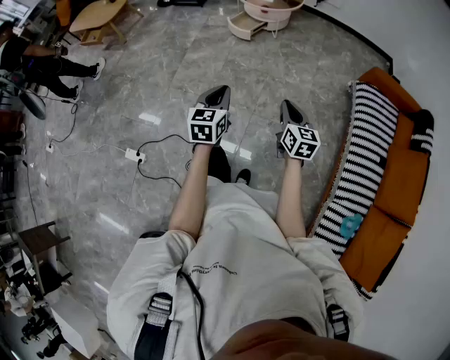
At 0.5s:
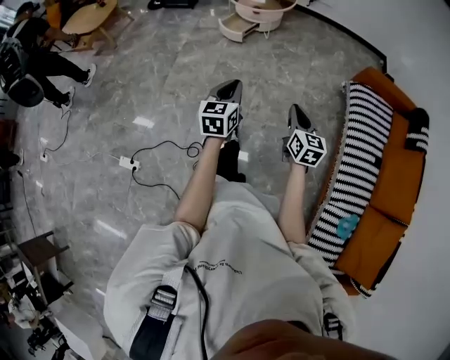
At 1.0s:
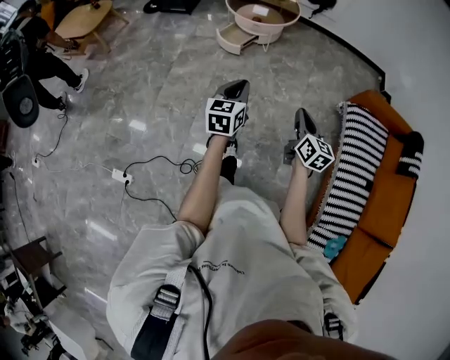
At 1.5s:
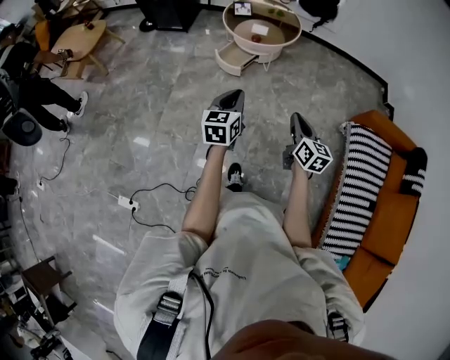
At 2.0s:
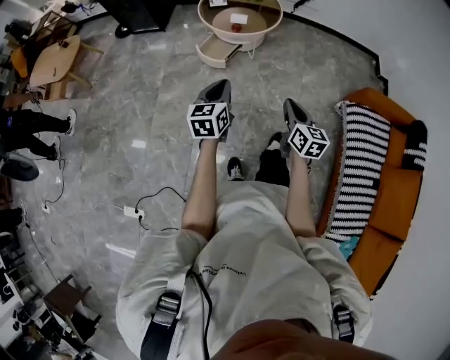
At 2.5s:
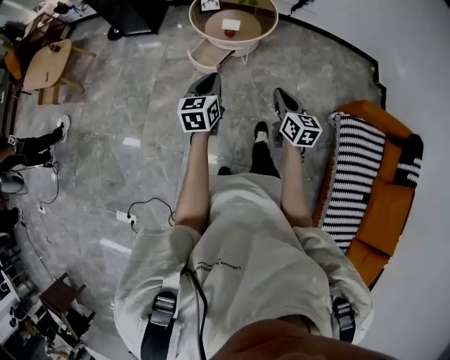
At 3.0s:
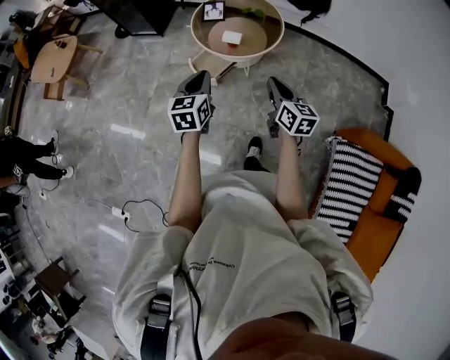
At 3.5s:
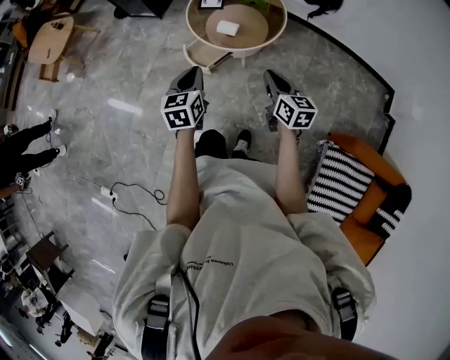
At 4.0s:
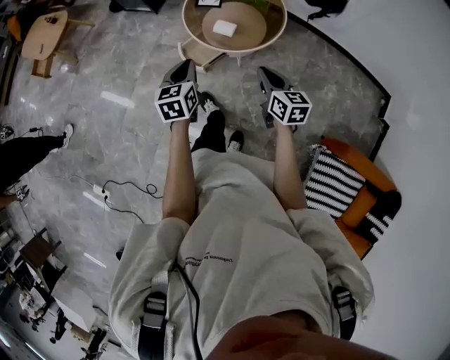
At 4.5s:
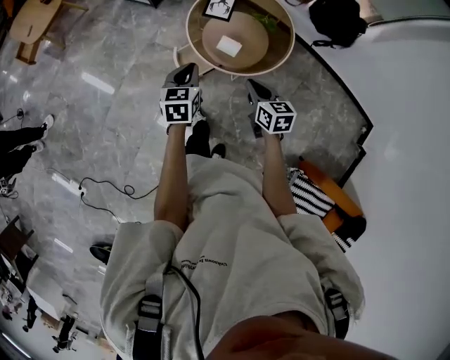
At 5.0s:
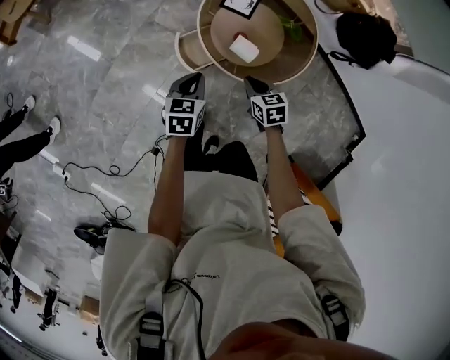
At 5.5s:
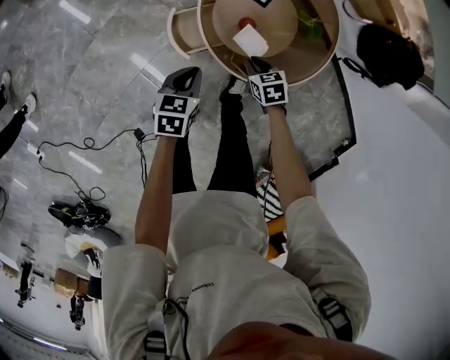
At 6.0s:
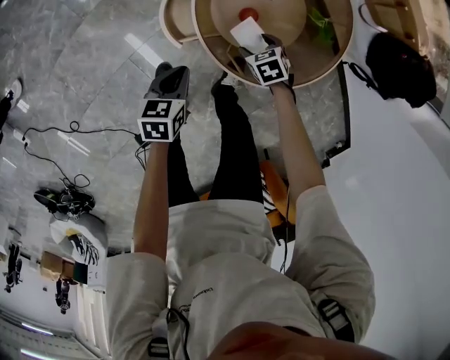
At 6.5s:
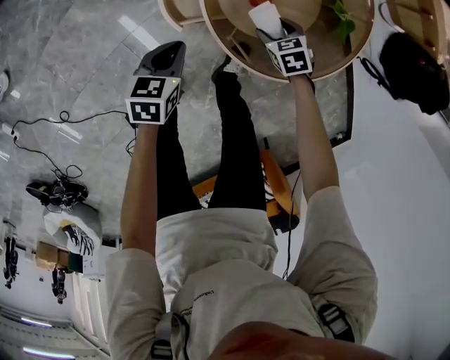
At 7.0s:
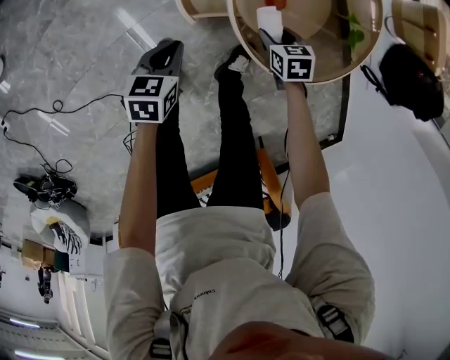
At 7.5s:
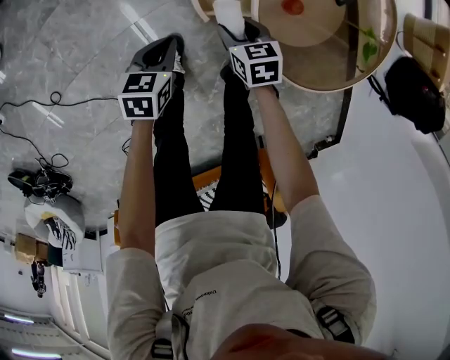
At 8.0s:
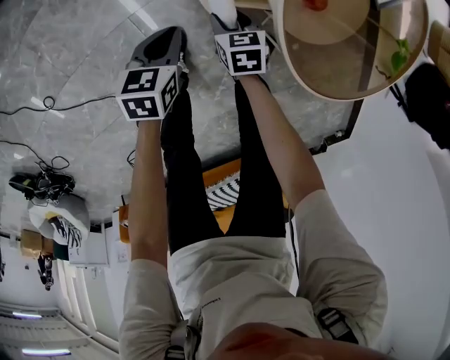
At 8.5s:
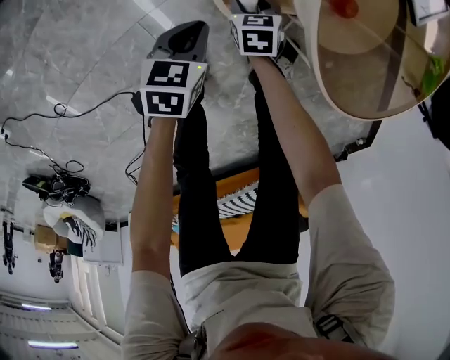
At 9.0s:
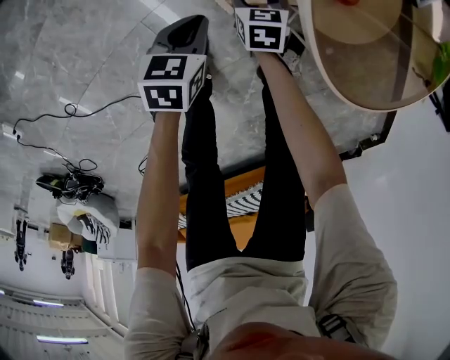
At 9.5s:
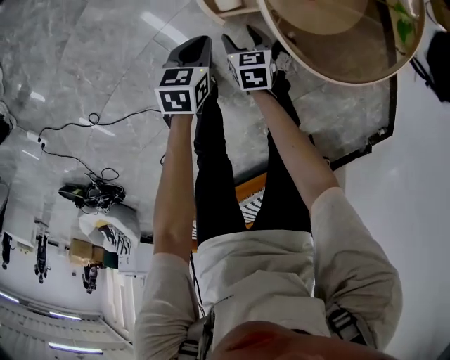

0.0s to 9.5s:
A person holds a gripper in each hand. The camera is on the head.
0.0s to 2.0s: The two grippers travel together, forward, roughly 50 cm.
2.0s to 4.0s: The pair of grippers is taken some 50 cm. The right gripper turns by some 30 degrees; the left gripper rotates approximately 20 degrees.
4.0s to 5.5s: The left gripper heads downward and forward, covering approximately 50 cm, and rotates some 20 degrees; the right gripper heads forward and downward, covering about 60 cm, and tilts its fingers approximately 40 degrees downward.
5.5s to 7.5s: The right gripper heads to the left and downward, covering approximately 25 cm, and opens up. Meanwhile the left gripper travels downward and to the left by approximately 30 cm, and rotates roughly 20 degrees.
7.5s to 9.5s: The left gripper moves to the right and downward, approximately 10 cm, while the right gripper moves downward, some 10 cm.

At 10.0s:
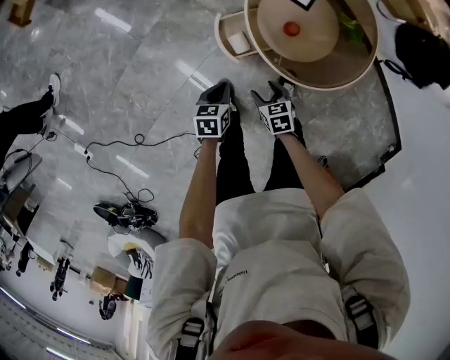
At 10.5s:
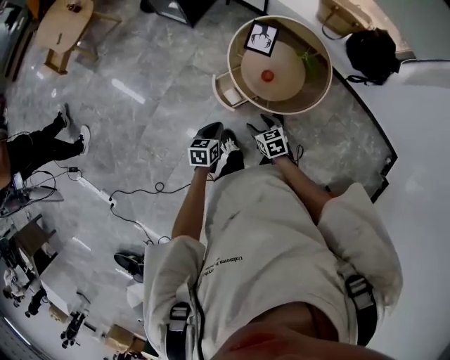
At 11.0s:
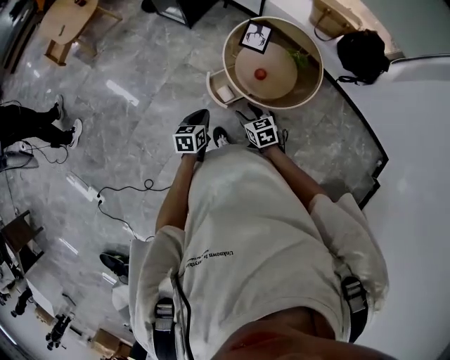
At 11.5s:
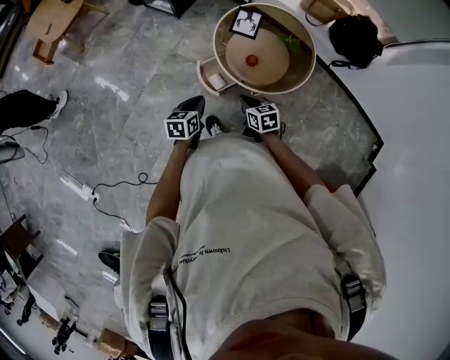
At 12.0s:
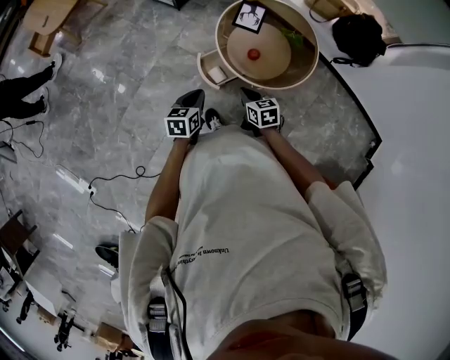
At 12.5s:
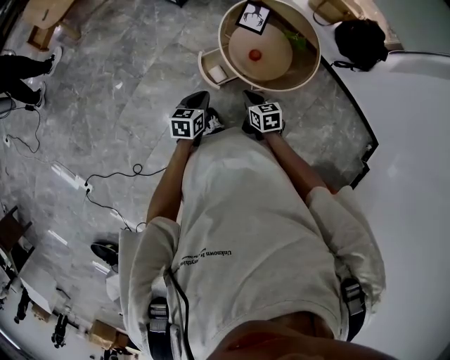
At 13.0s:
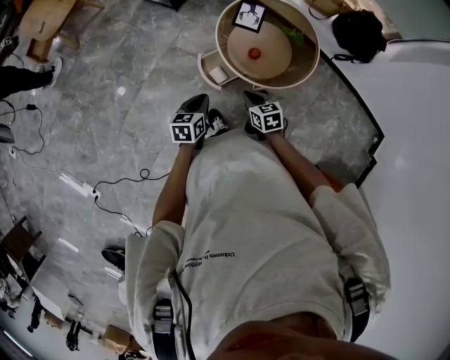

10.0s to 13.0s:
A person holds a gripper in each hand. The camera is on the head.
10.0s to 11.5s: The grippers both shift upward by approximately 25 cm. The right gripper rotates approximately 20 degrees, and closes its fingers.
11.5s to 13.0s: There are only small adjustments of the grippers.

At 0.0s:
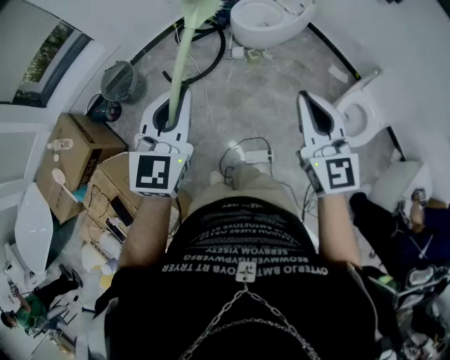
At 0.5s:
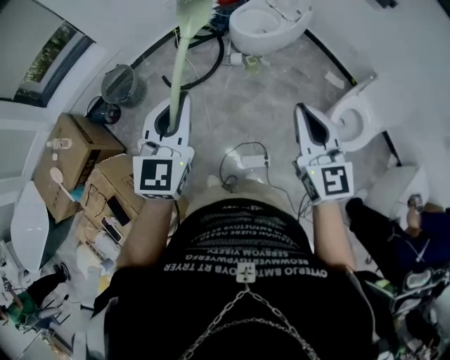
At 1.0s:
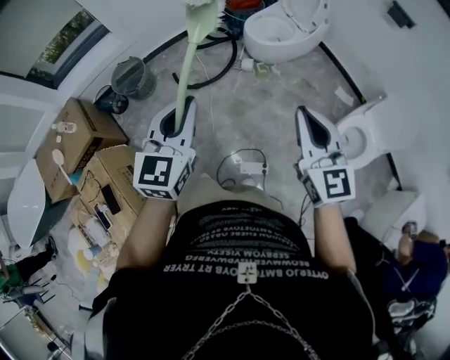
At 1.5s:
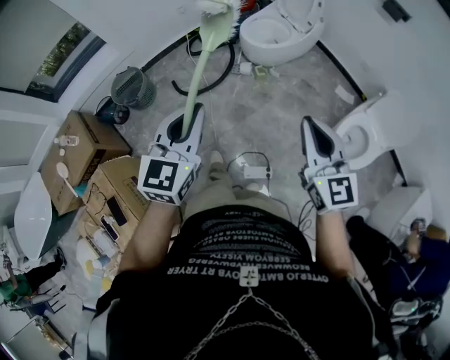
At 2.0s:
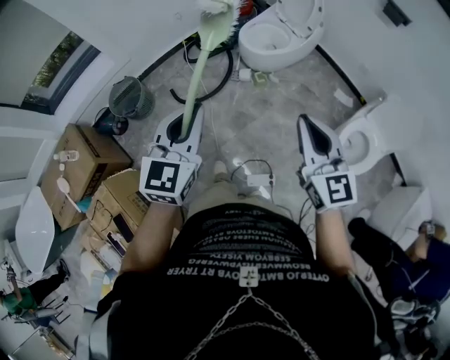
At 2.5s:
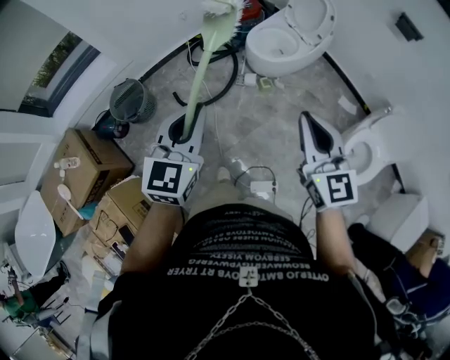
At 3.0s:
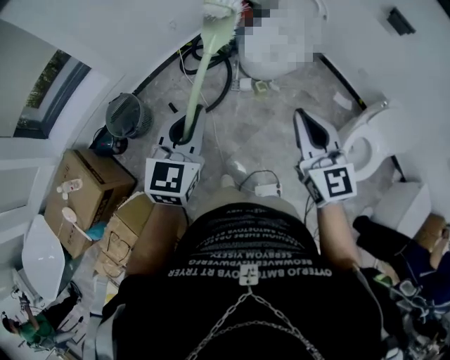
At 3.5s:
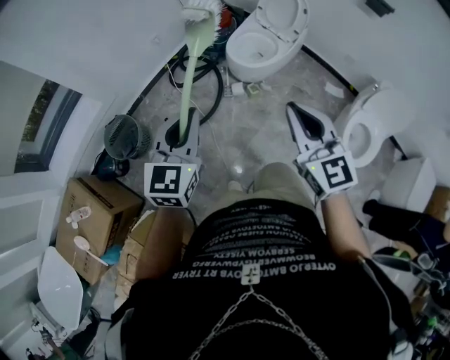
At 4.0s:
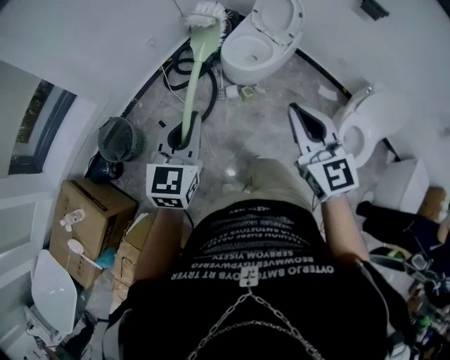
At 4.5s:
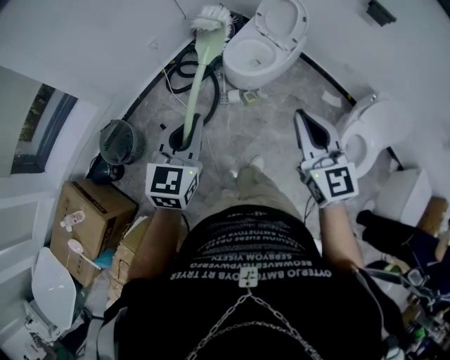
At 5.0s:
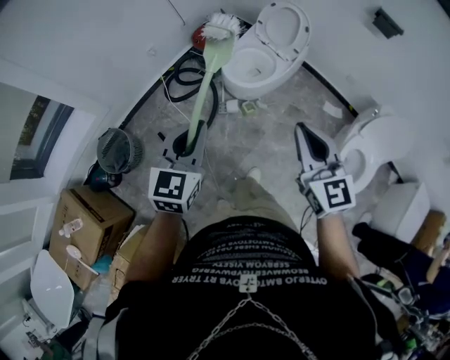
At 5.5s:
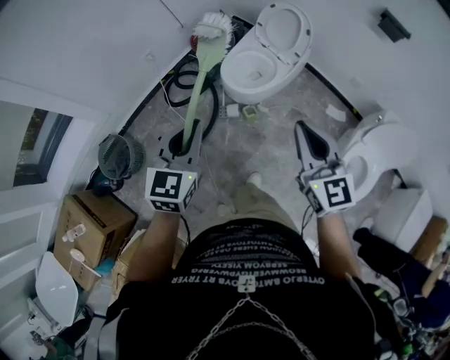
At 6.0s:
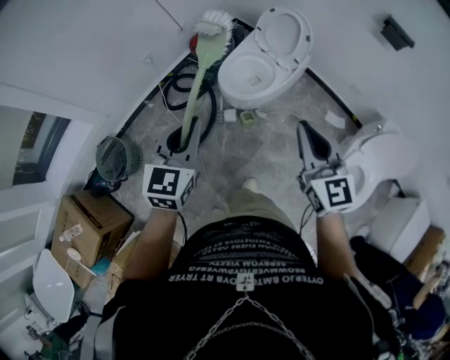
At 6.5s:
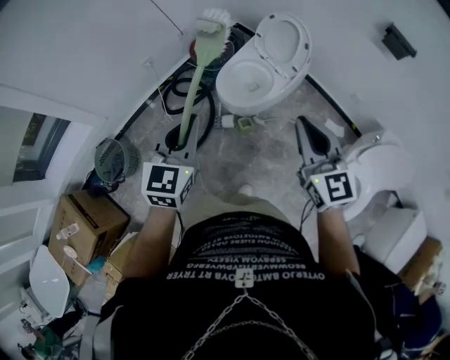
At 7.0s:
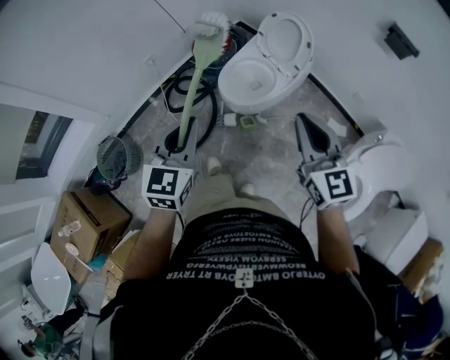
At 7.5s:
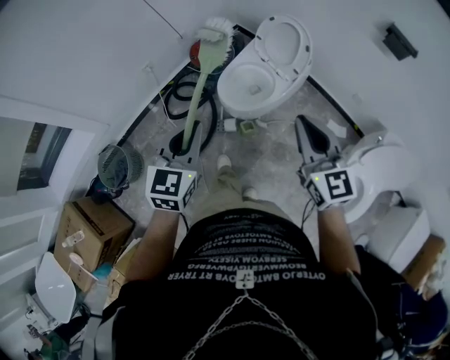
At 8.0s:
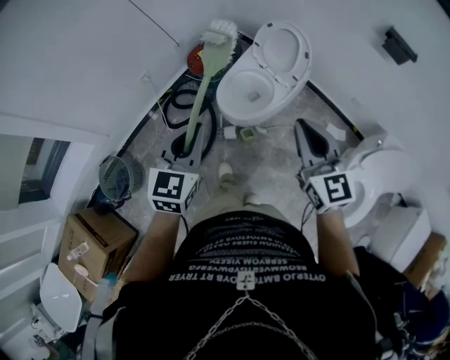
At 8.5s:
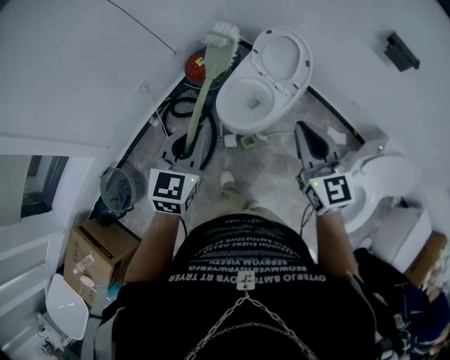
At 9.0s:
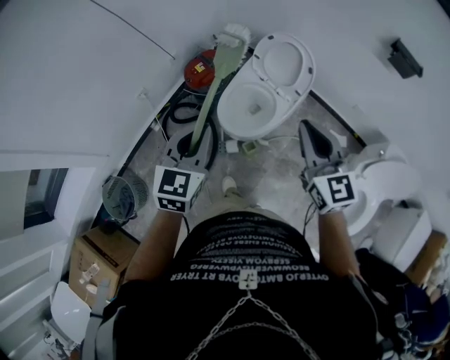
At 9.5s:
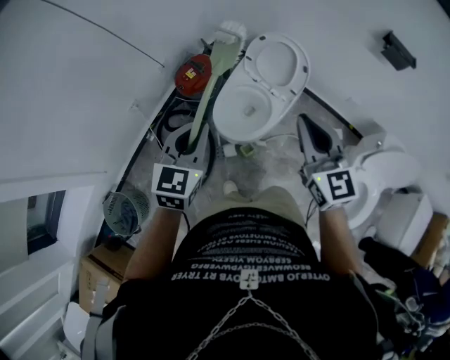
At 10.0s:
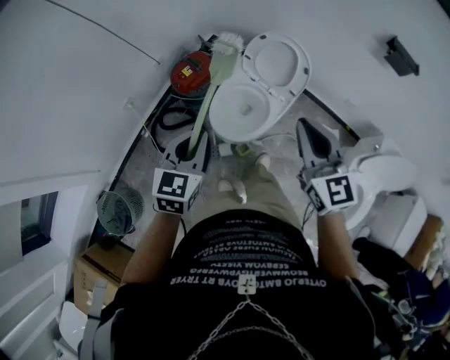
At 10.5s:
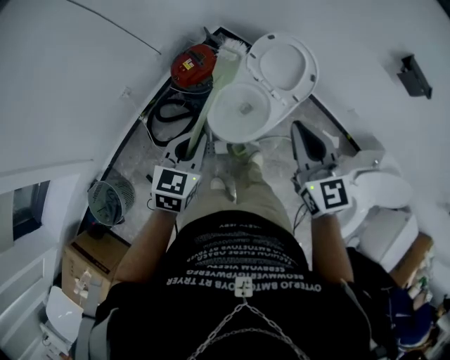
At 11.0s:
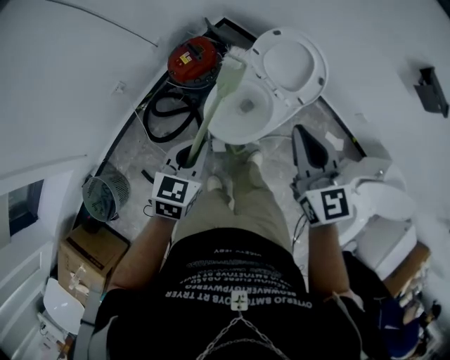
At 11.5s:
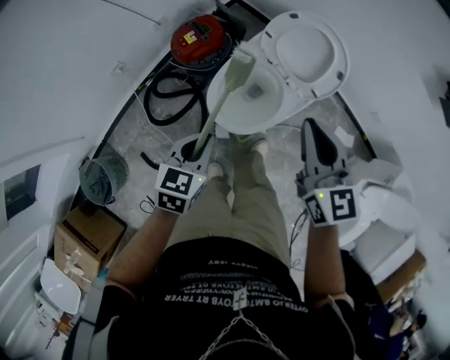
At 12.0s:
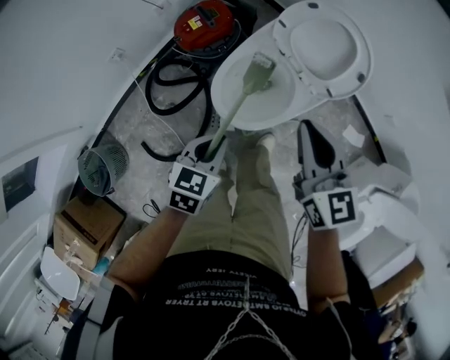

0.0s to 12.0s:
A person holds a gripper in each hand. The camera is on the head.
0.0s to 2.0s: Both grippers travel together forward, some 5 cm.
2.0s to 4.0s: The right gripper heads to the left and forward, covering roughly 20 cm, while the left gripper is displaced forward and to the left by roughly 20 cm.
4.0s to 6.0s: The grippers both shift forward and to the right by roughly 25 cm.
6.0s to 8.0s: Both grippers move forward, about 10 cm.
8.0s to 10.0s: The left gripper heads forward and downward, covering some 20 cm. Meanwhile the right gripper is displaced forward by approximately 15 cm.
10.0s to 12.0s: The left gripper is displaced downward by roughly 25 cm, and turns by roughly 20 degrees; the right gripper goes about 25 cm downward and forward, and turns by roughly 20 degrees.

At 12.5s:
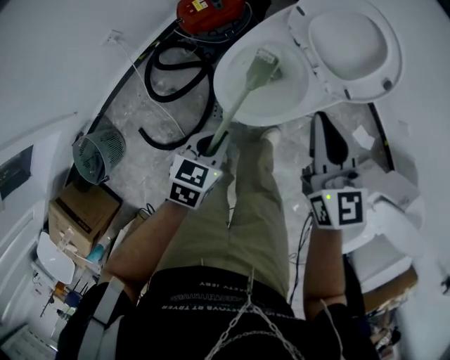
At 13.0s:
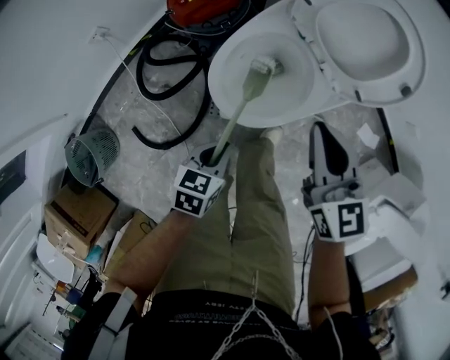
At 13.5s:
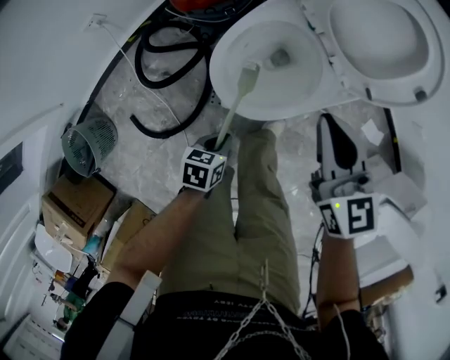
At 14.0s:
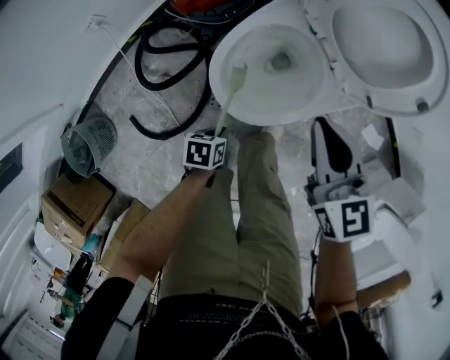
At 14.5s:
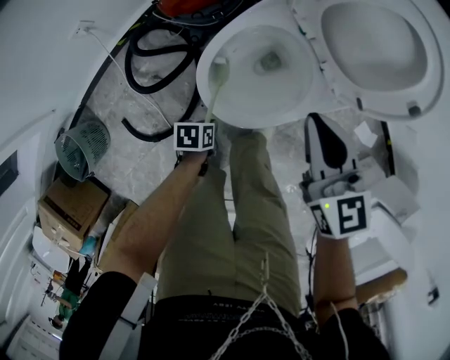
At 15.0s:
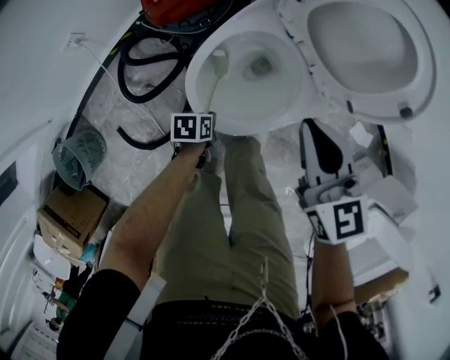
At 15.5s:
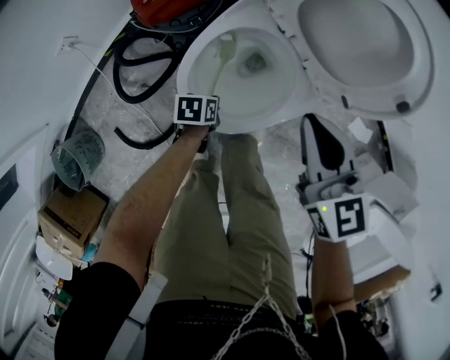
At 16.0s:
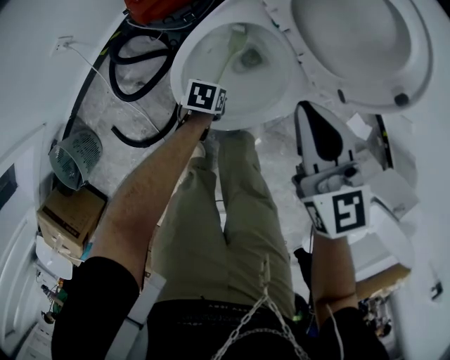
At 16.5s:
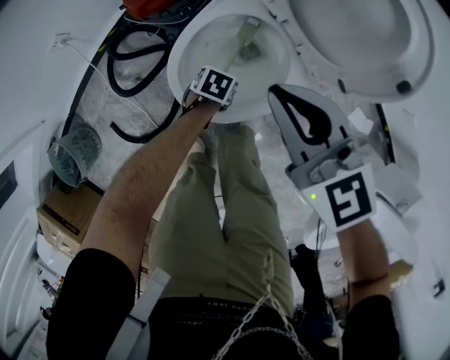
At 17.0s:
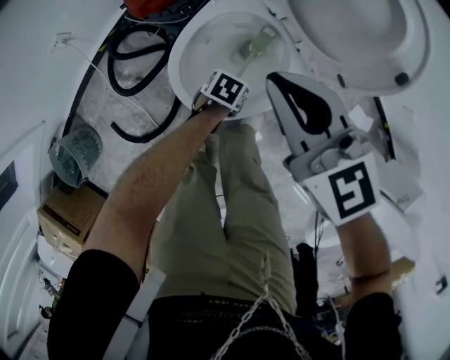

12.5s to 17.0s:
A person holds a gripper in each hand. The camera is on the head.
12.5s to 14.5s: The left gripper shifts some 25 cm downward, and rotates some 40 degrees; the right gripper is displaced downward by about 10 cm.
14.5s to 17.0s: The left gripper ends up roughly 15 cm from where it was, and rotates about 30 degrees.
